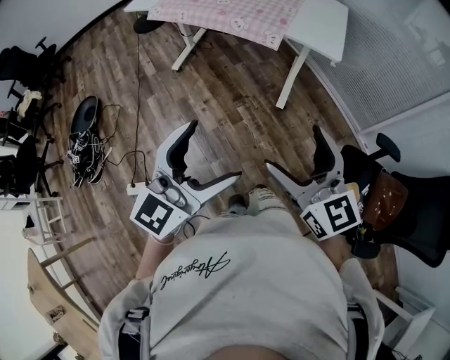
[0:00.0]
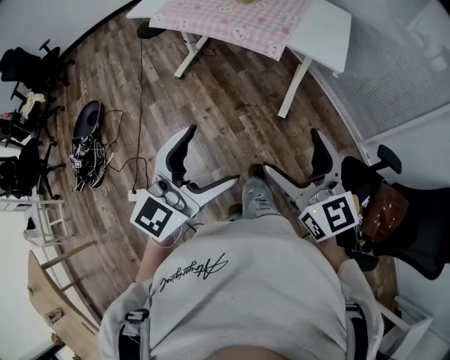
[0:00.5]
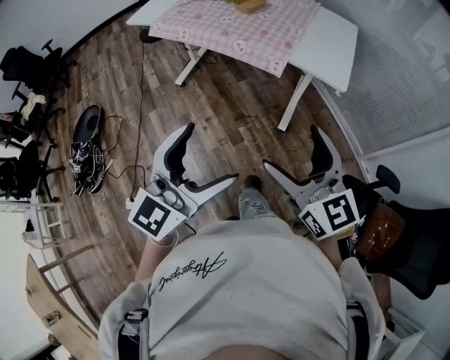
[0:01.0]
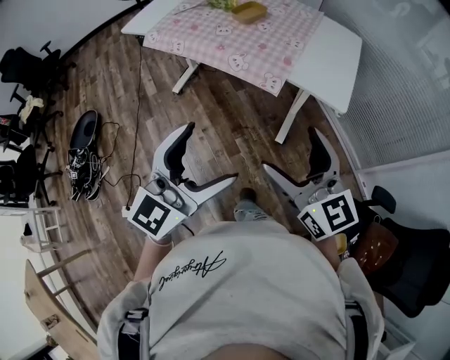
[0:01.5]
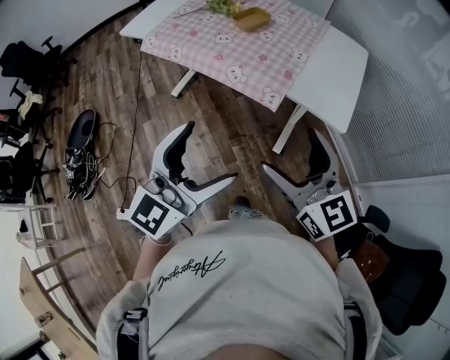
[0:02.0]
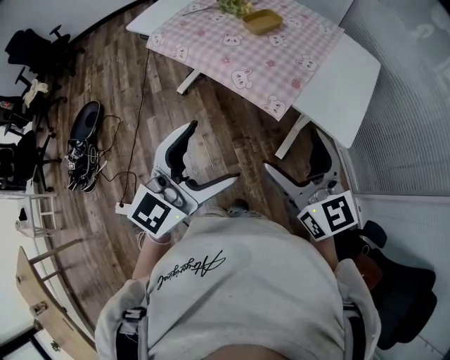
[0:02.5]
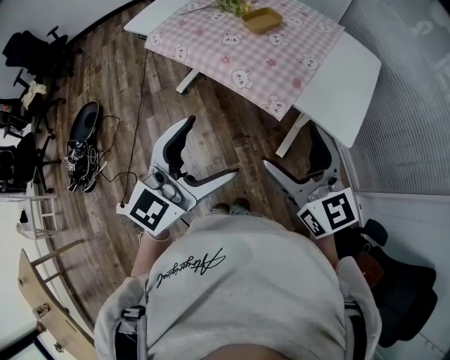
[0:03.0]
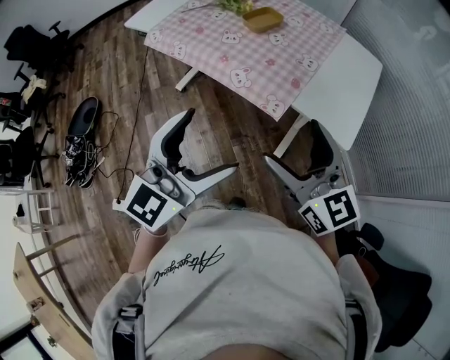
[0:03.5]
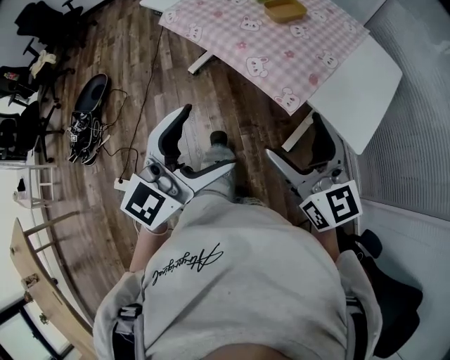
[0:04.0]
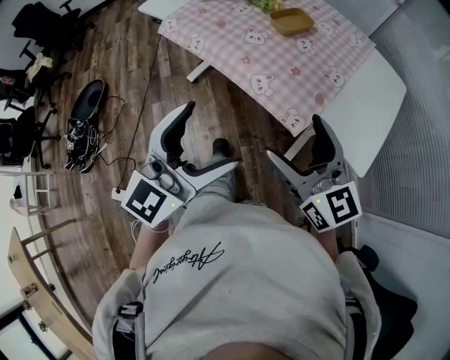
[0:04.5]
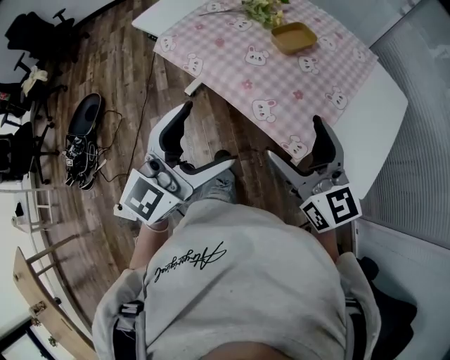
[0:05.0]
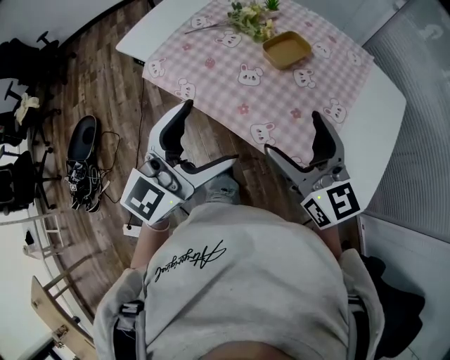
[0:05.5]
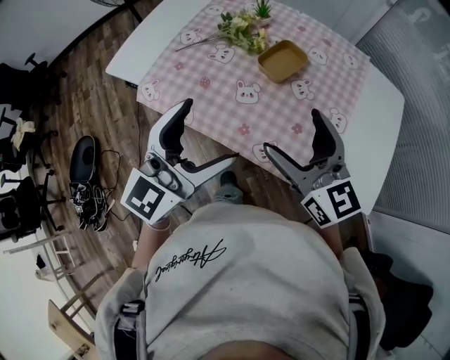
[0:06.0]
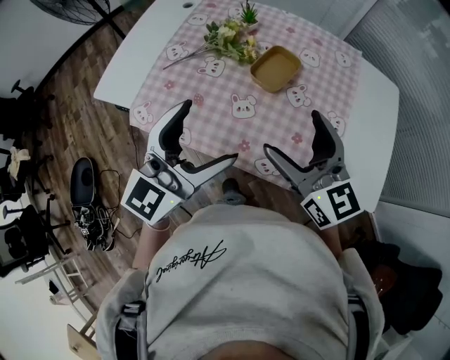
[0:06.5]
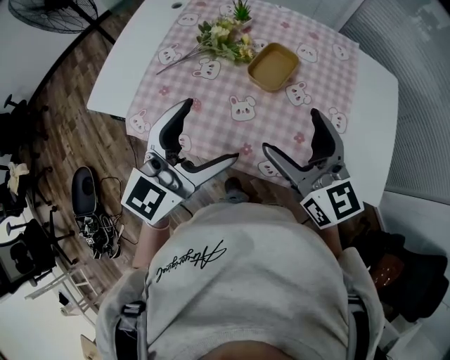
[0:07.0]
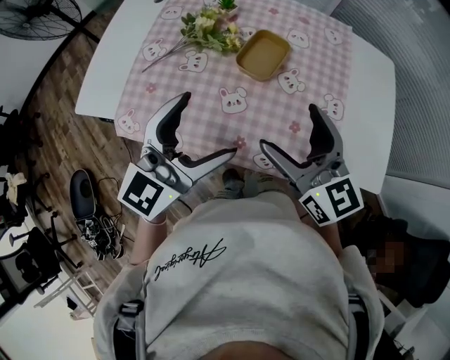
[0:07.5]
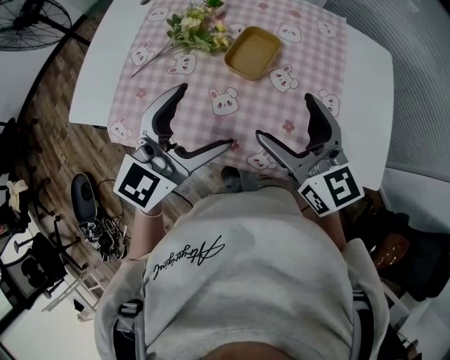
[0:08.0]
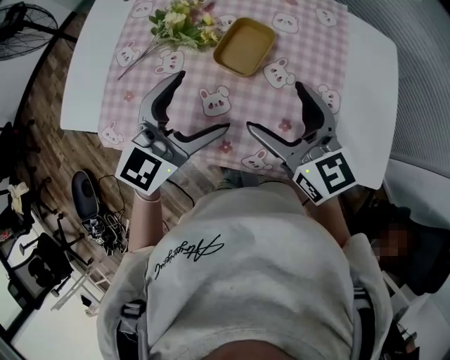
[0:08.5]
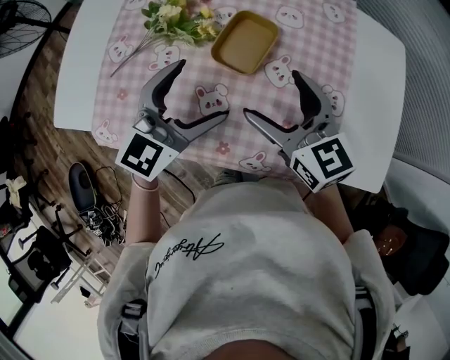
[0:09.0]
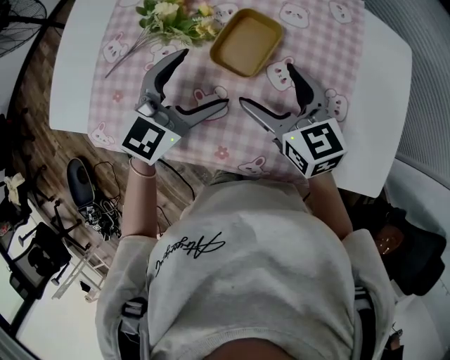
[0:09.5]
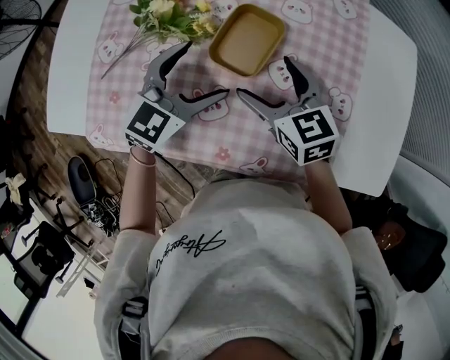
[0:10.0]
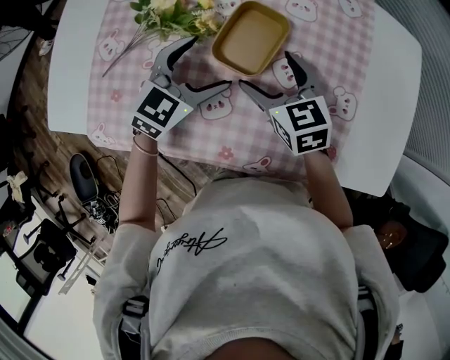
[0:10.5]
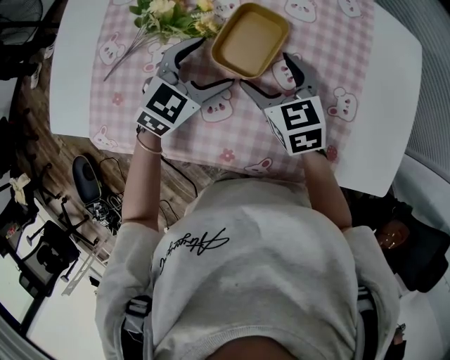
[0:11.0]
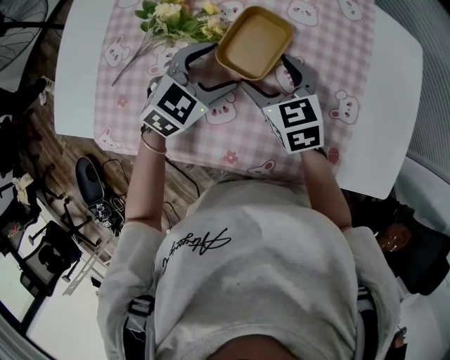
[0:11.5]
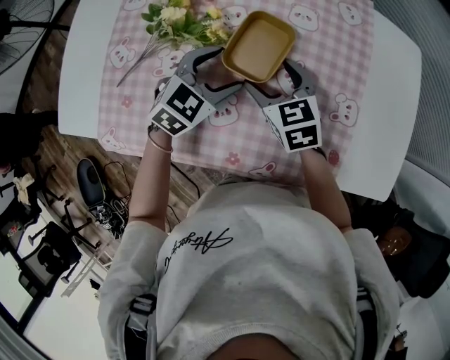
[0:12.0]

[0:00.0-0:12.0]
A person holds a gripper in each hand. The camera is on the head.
0:00.0 to 0:02.0: The grippers both shift forward by some 30 cm.
0:02.0 to 0:04.0: The grippers both shift forward by approximately 5 cm.
0:04.0 to 0:06.0: Both grippers move forward, some 30 cm.
0:06.0 to 0:08.0: Both grippers move forward, approximately 10 cm.
0:08.0 to 0:10.0: The left gripper shifts roughly 20 cm forward and downward, while the right gripper moves downward and forward, approximately 20 cm, and swivels roughly 20 degrees.
0:10.0 to 0:12.0: The grippers stay close to where they were, moving slightly.

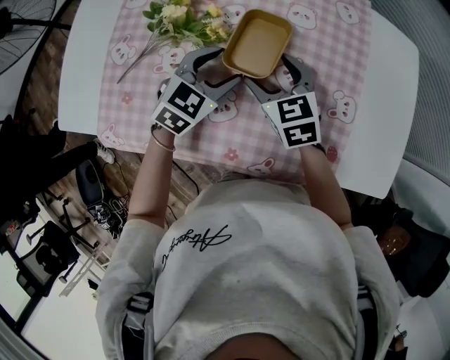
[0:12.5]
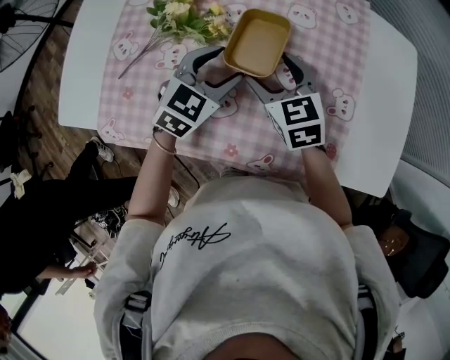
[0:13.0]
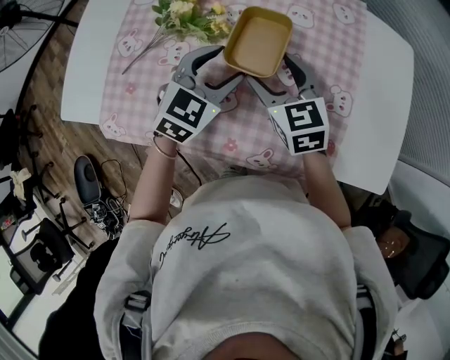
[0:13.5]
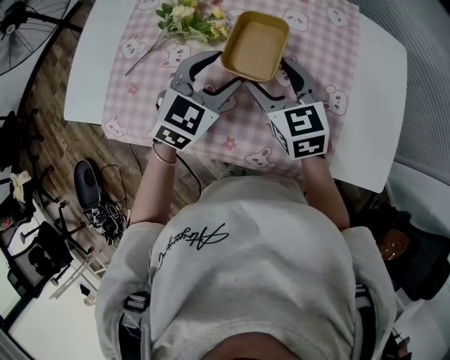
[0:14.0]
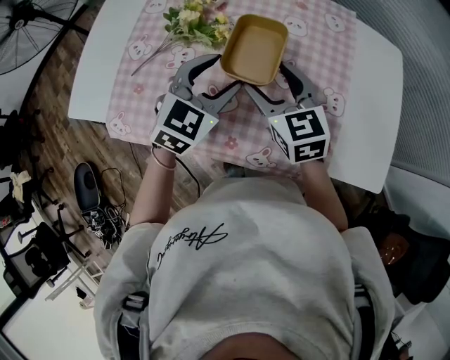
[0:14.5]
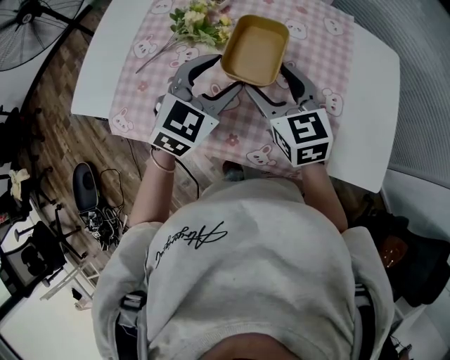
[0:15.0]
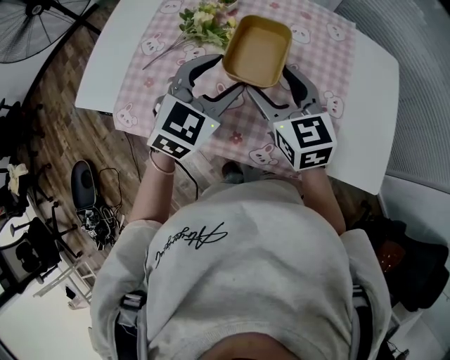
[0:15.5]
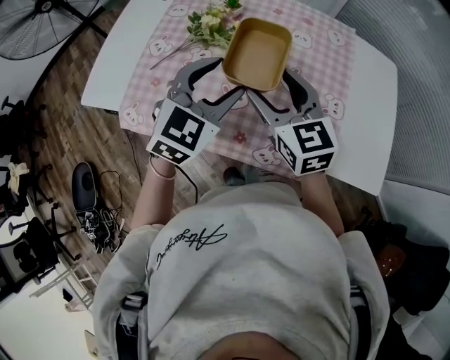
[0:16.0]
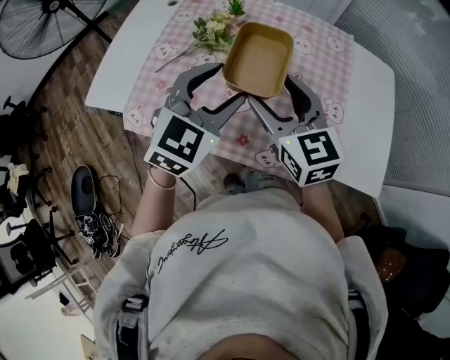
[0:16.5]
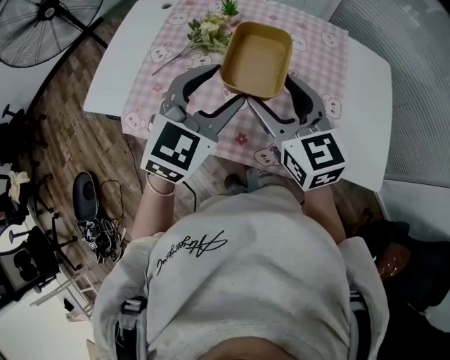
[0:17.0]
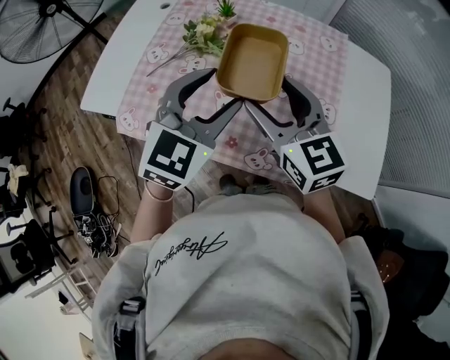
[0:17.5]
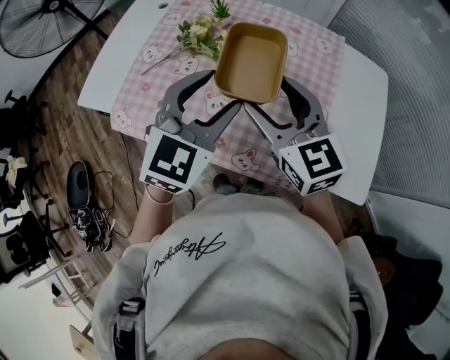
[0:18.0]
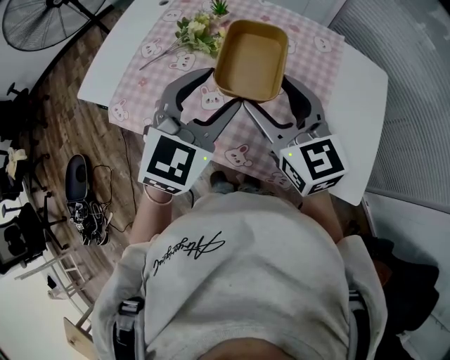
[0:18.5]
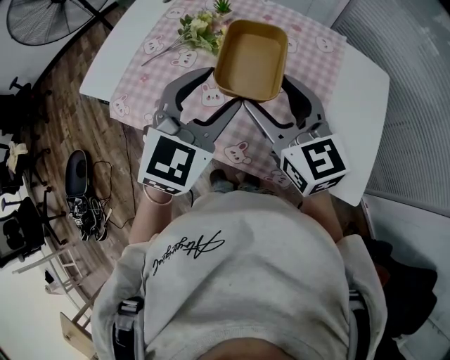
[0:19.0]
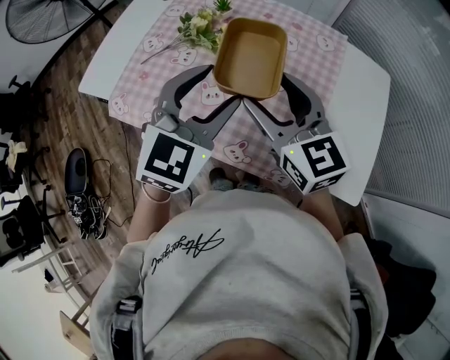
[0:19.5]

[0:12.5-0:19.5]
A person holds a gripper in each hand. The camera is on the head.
0:12.5 to 0:14.5: The two grippers go about 10 cm upward and backward.
0:14.5 to 0:16.0: Both grippers move upward and backward, about 10 cm.
0:16.0 to 0:17.5: The left gripper ends up roughly 5 cm from where it was; the right gripper shifts by roughly 5 cm.
0:17.5 to 0:19.5: The right gripper shifts by some 5 cm, while the left gripper ends up some 5 cm from where it was.

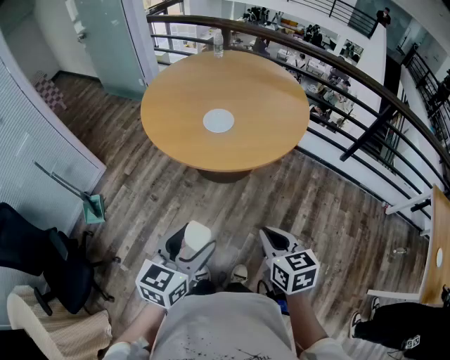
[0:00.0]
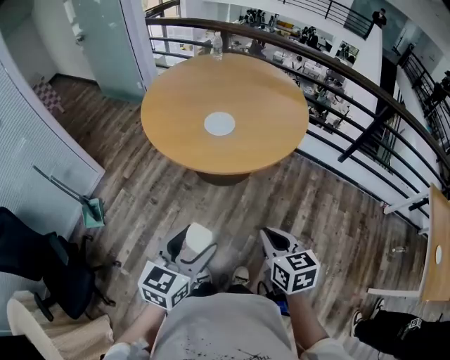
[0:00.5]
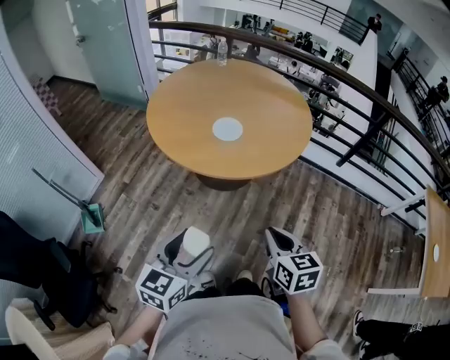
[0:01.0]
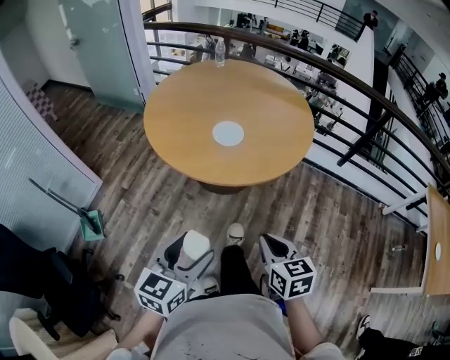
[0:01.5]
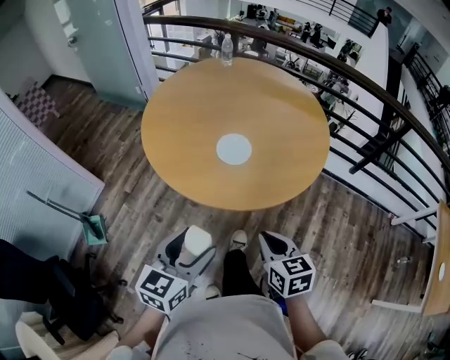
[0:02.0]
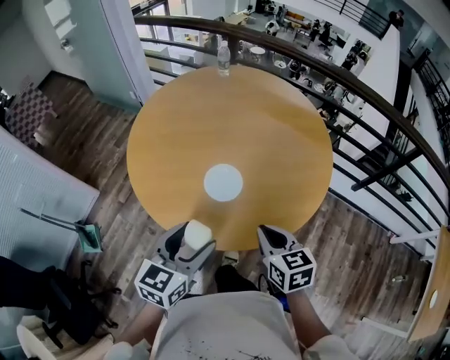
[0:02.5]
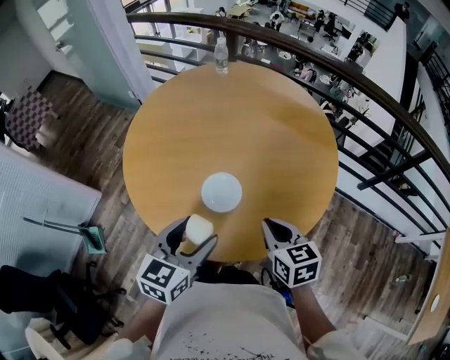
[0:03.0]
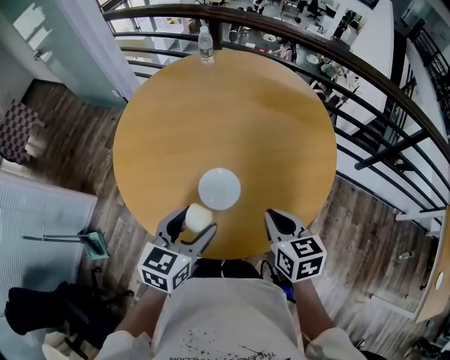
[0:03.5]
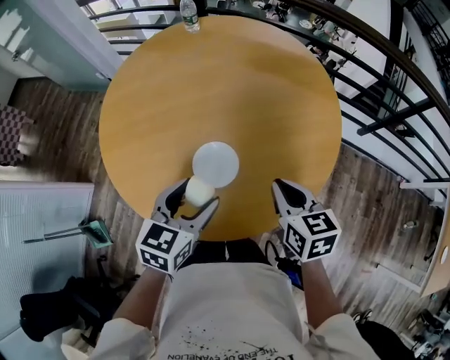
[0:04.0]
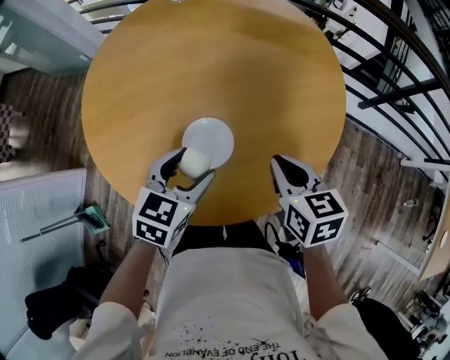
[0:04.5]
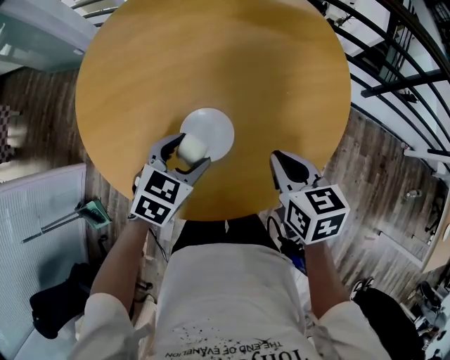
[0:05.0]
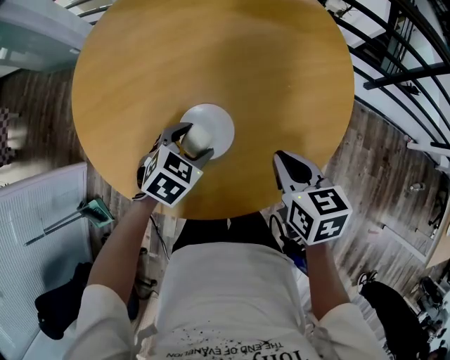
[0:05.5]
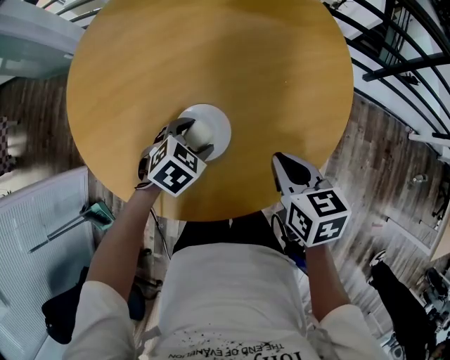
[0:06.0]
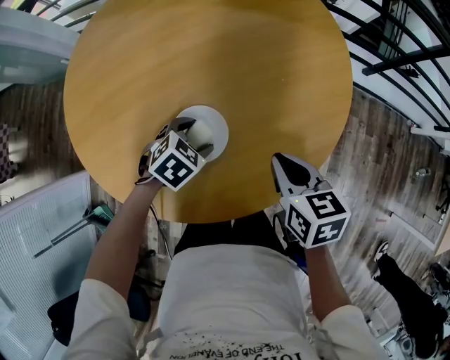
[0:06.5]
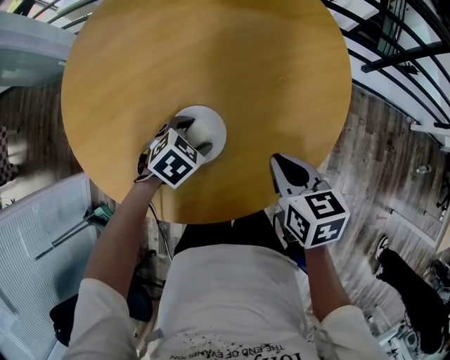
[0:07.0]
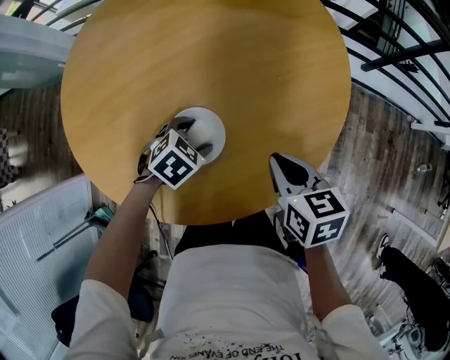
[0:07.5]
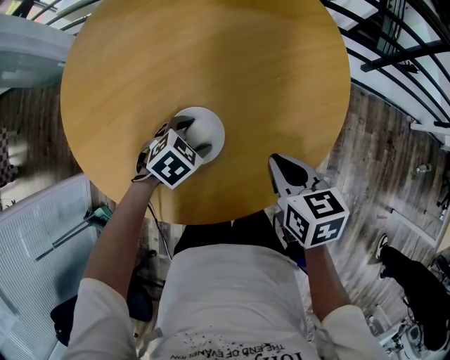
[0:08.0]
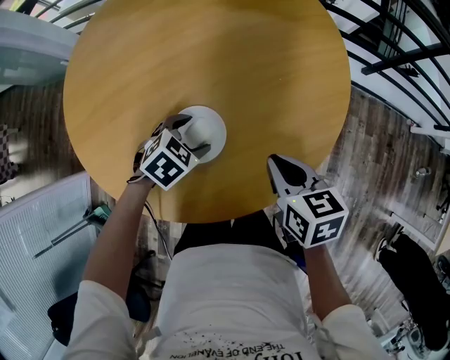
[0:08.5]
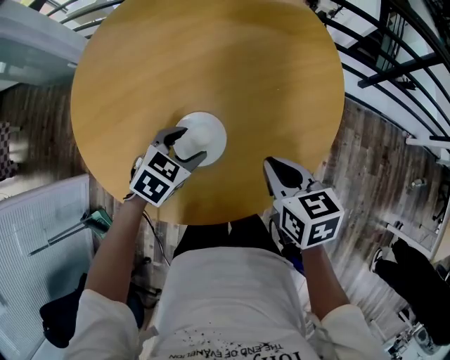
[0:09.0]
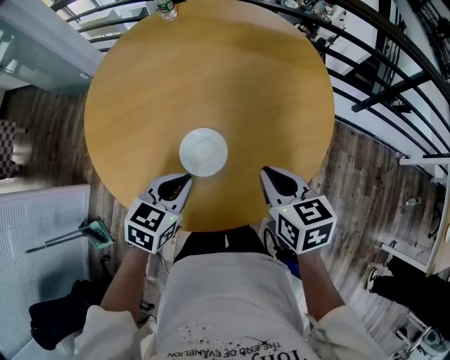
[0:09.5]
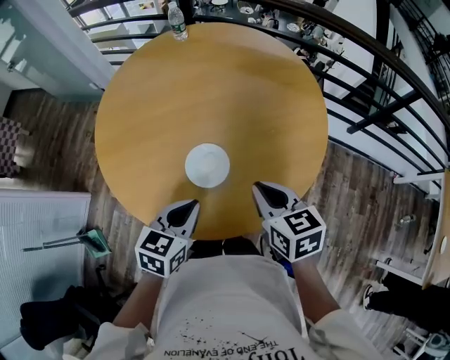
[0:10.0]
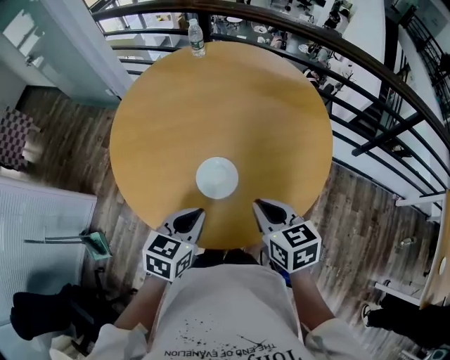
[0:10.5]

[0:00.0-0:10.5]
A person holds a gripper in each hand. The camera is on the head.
0:00.0 to 0:02.0: Both grippers move forward and to the left, about 20 cm.
0:02.0 to 0:04.0: The grippers both shift forward by roughly 35 cm.
0:04.0 to 0:06.5: The left gripper shifts approximately 25 cm downward and forward, and points its fingers roughly 30 degrees further downward; the right gripper shifts some 10 cm downward.
0:06.5 to 0:08.5: Both grippers stay about where they are.
0:08.5 to 0:10.5: The left gripper shifts about 25 cm upward and backward, turns by roughly 50 degrees, and closes up. The right gripper goes about 15 cm upward, backward and to the left.
